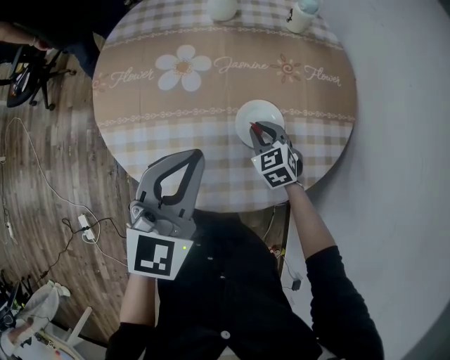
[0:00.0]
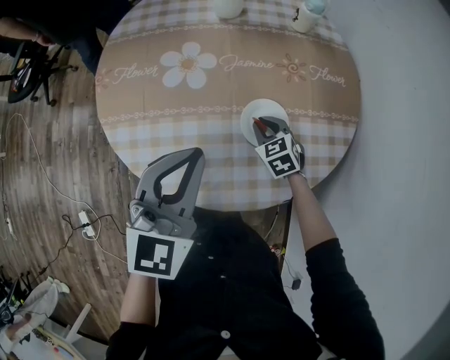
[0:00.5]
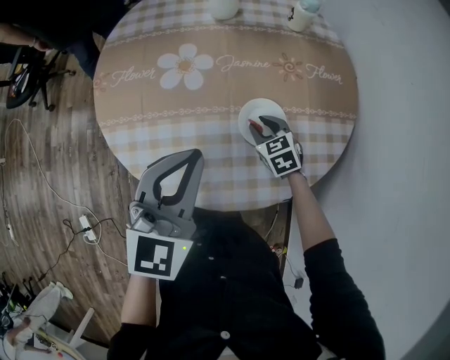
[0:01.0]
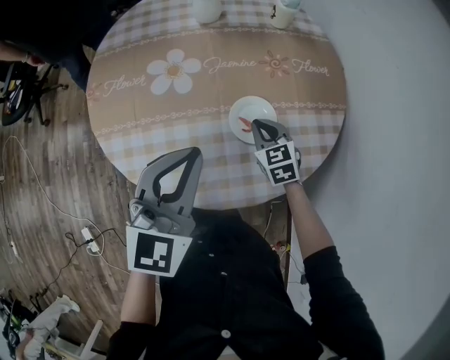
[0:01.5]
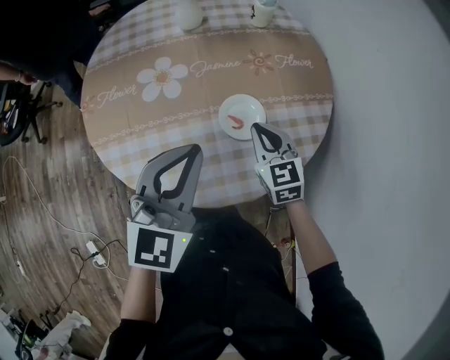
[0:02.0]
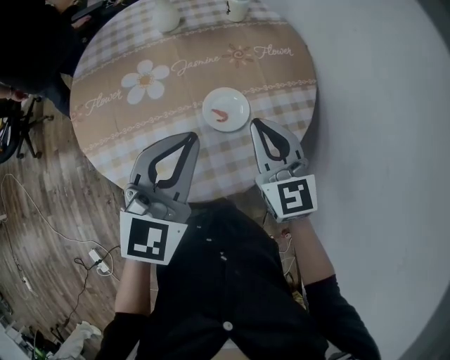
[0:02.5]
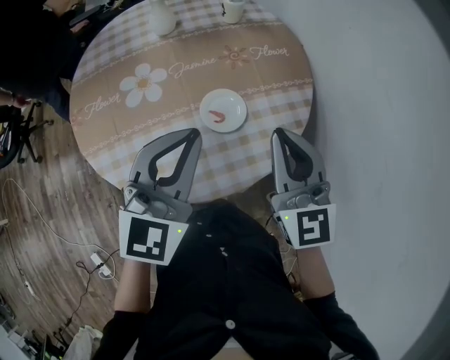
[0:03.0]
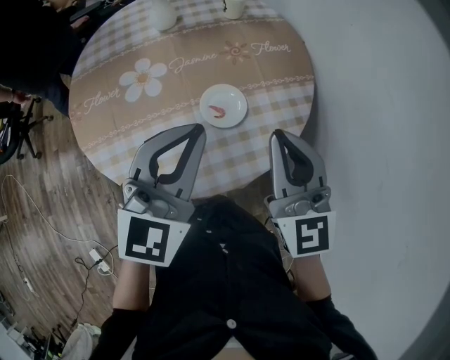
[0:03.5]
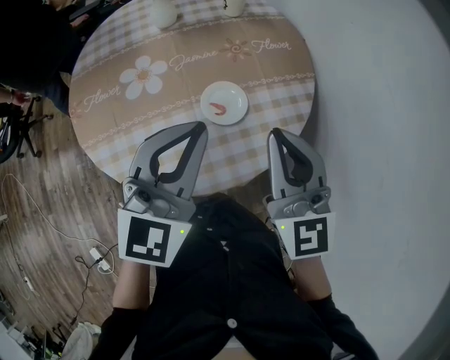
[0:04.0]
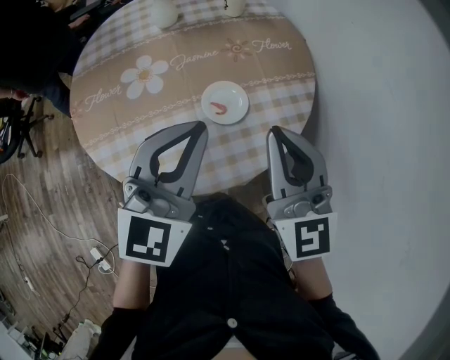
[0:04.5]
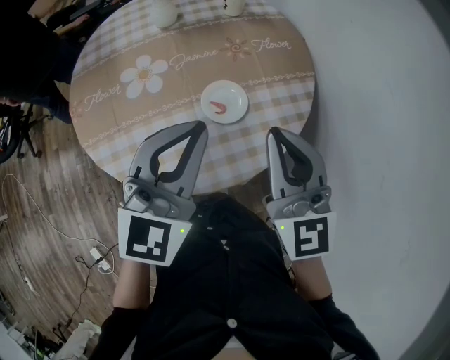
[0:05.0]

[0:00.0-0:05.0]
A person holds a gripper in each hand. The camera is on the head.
0:00.0 to 0:02.5: The left gripper is displaced to the right by about 5 cm. The right gripper shifts about 25 cm upward, and tilts its fingers some 30 degrees upward.
0:02.5 to 0:05.0: The right gripper travels upward and backward by approximately 10 cm.

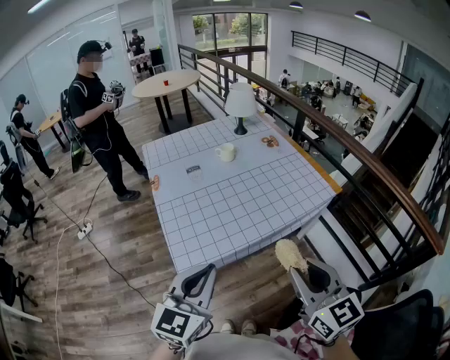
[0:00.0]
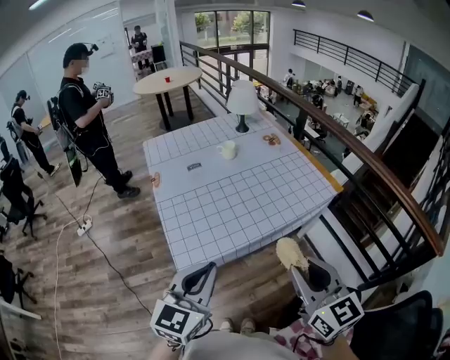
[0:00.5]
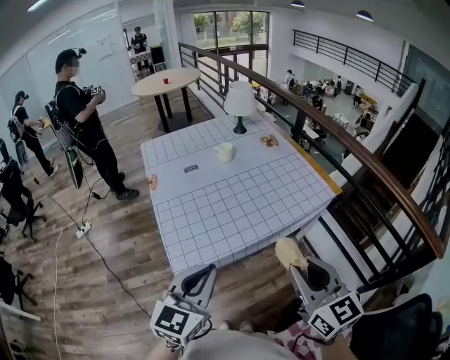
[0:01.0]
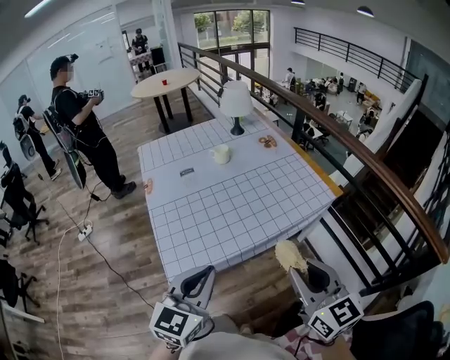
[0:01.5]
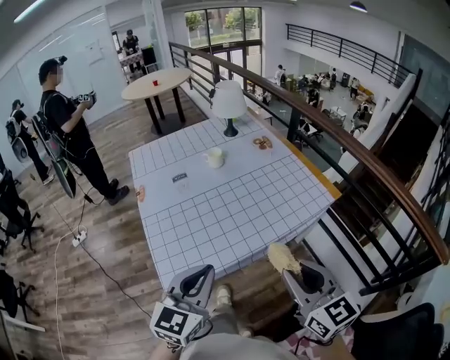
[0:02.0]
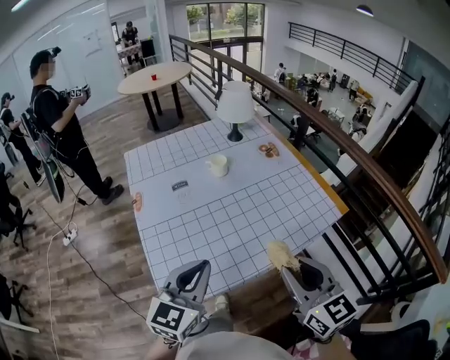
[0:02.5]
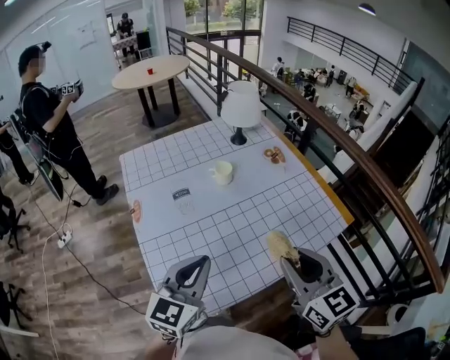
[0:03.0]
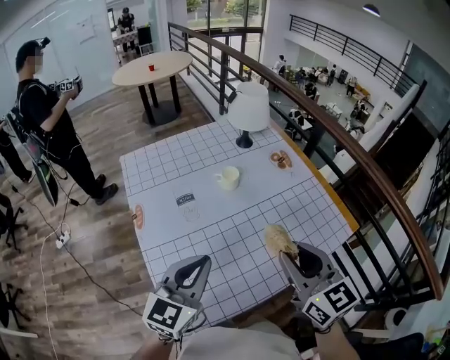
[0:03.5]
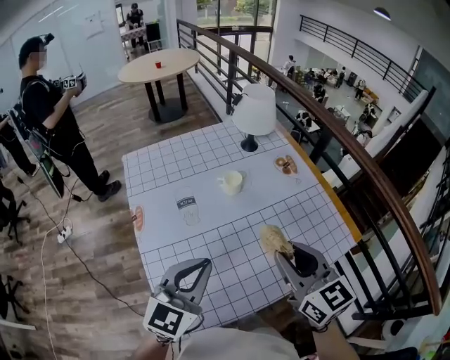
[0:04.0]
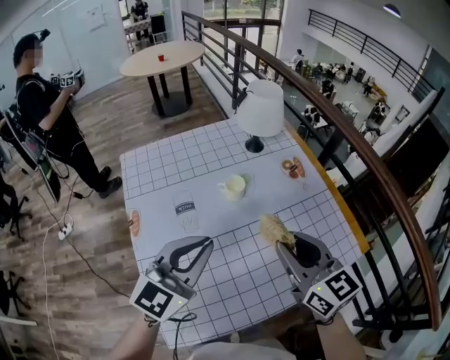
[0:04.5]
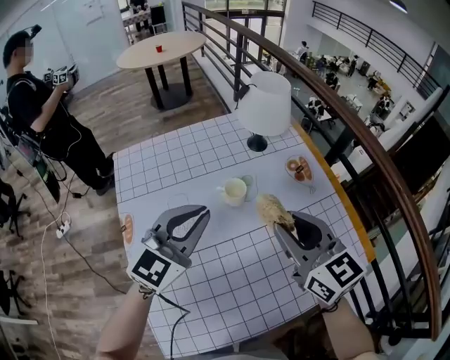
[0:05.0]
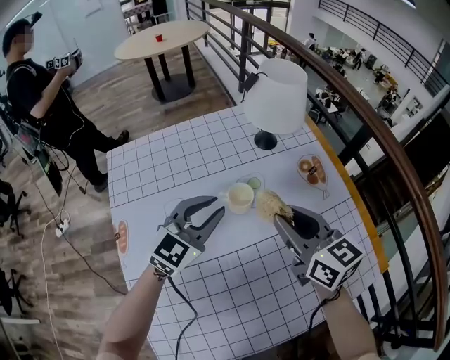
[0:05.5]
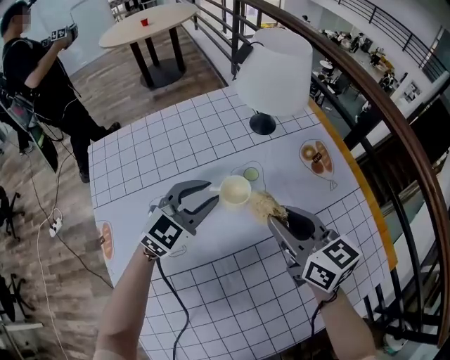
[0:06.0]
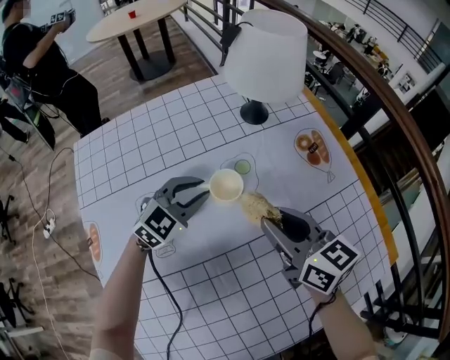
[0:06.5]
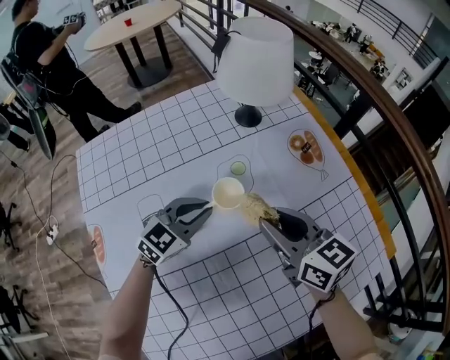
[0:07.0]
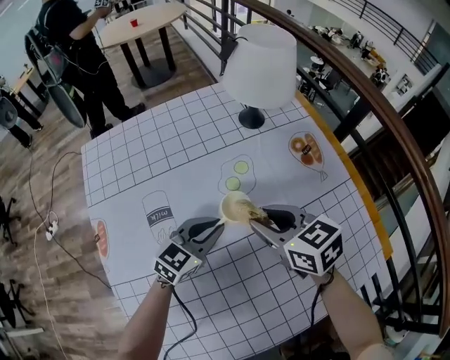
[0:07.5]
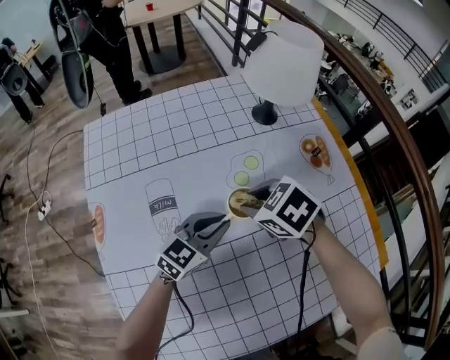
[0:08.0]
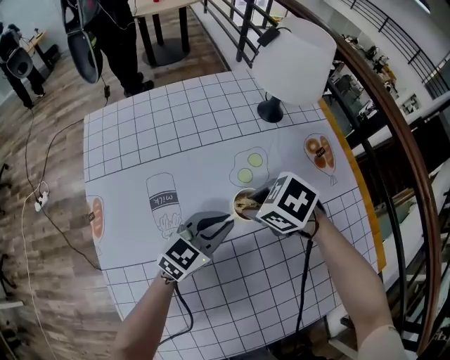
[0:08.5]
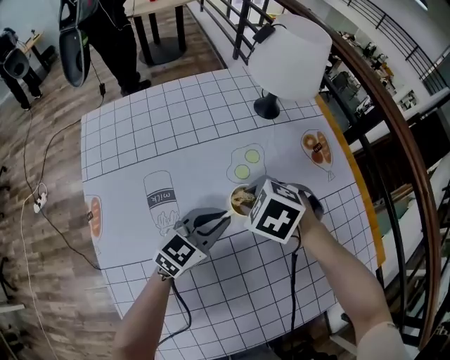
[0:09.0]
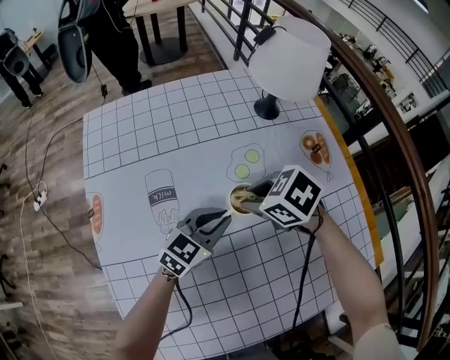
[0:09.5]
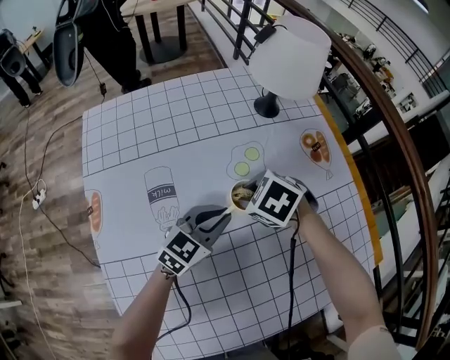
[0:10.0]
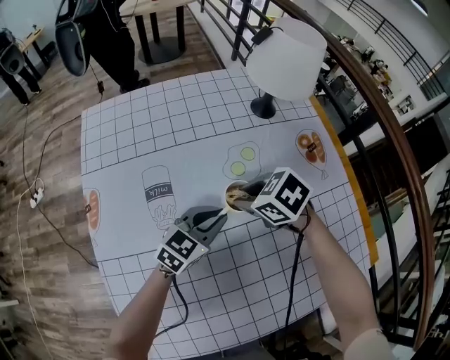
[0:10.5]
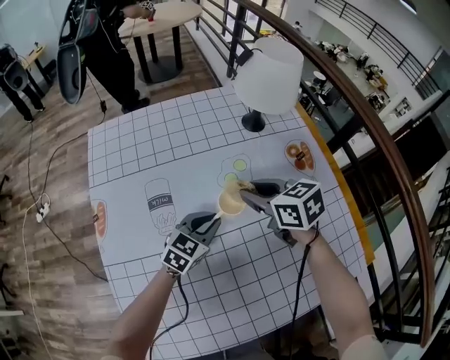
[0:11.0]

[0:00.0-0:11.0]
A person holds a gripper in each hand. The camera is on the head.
0:00.0 to 0:02.0: The left gripper shifts approximately 10 cm forward and to the right. The right gripper shifts about 10 cm forward.
0:02.0 to 0:03.5: The grippers both shift forward and to the left by about 30 cm.
0:03.5 to 0:05.5: The right gripper is displaced forward and downward by about 35 cm; the left gripper heads forward, covering roughly 35 cm.
0:05.5 to 0:07.5: Both grippers travel together downward, roughly 15 cm. The left gripper swivels some 20 degrees. The right gripper rotates about 20 degrees.
0:07.5 to 0:09.0: The right gripper heads downward, covering roughly 5 cm, and tilts its fingers approximately 40 degrees downward.
0:09.0 to 0:11.0: The right gripper heads upward, covering approximately 10 cm, and tilts its fingers roughly 30 degrees upward.

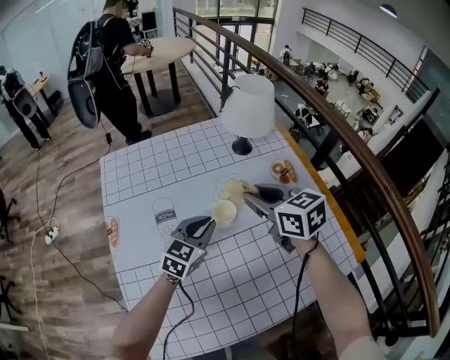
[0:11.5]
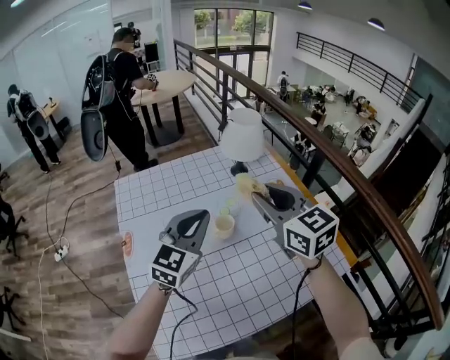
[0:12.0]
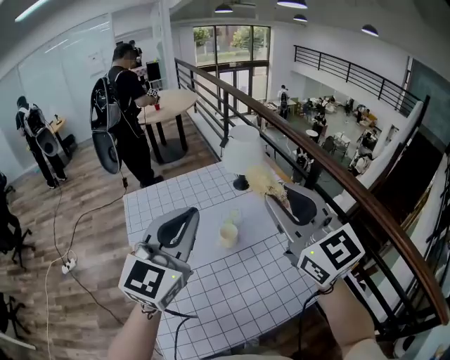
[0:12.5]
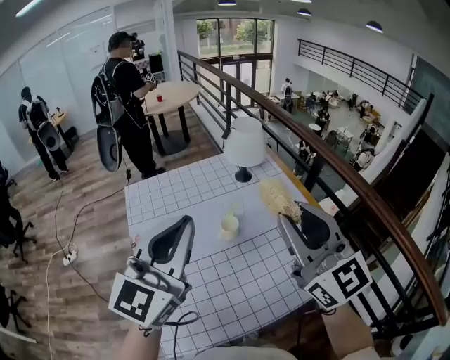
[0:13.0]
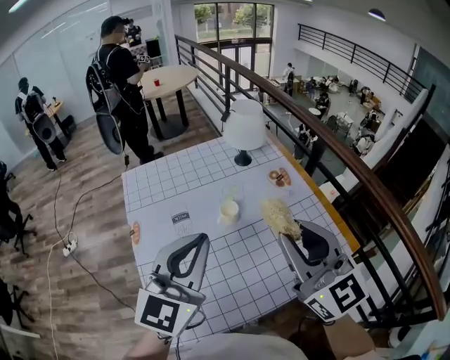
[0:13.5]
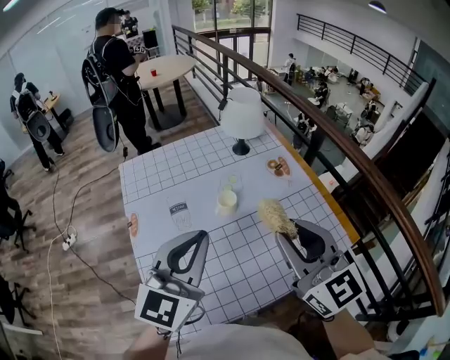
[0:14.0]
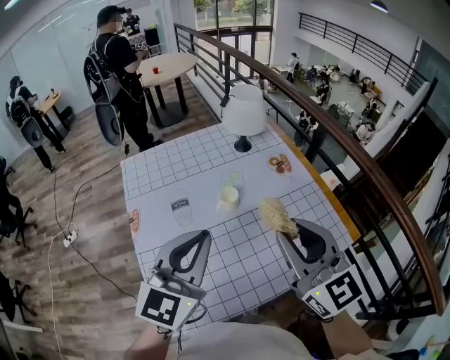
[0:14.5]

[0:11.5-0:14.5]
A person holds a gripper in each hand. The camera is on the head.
0:11.5 to 0:13.0: Both grippers move upward and backward, approximately 40 cm. The right gripper points its fingers about 40 degrees further upward. The left gripper tilts its fingers some 30 degrees upward.
0:13.0 to 0:14.5: The two grippers go about 10 cm downward.

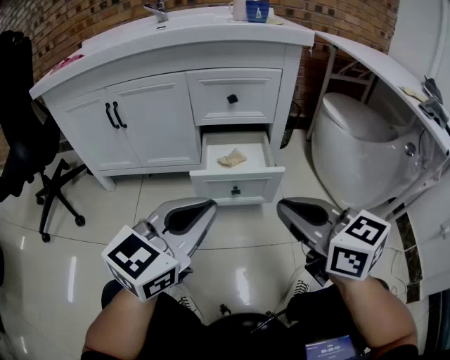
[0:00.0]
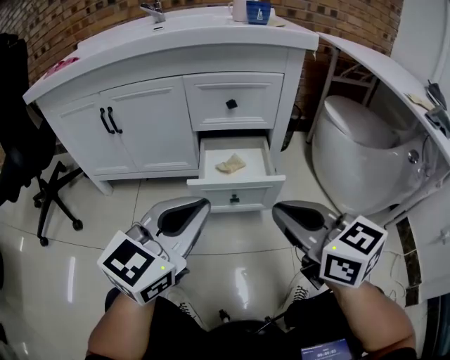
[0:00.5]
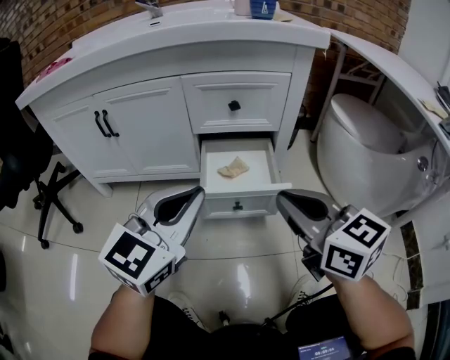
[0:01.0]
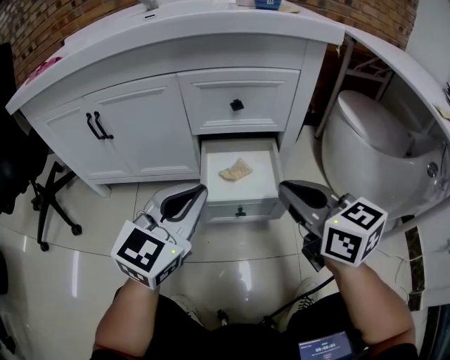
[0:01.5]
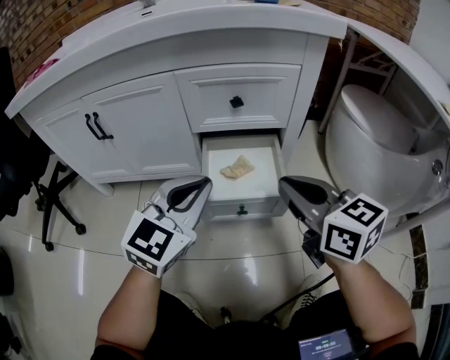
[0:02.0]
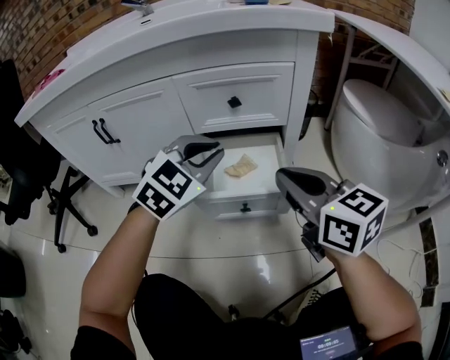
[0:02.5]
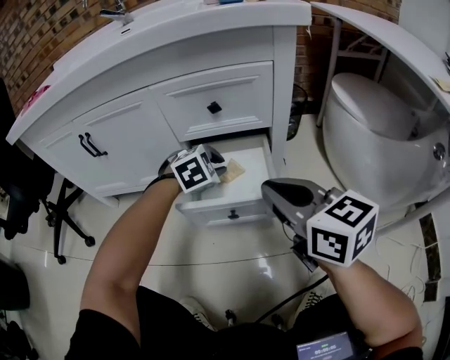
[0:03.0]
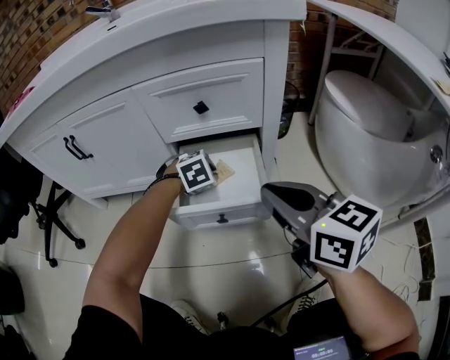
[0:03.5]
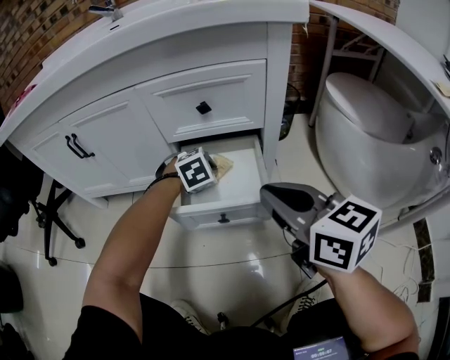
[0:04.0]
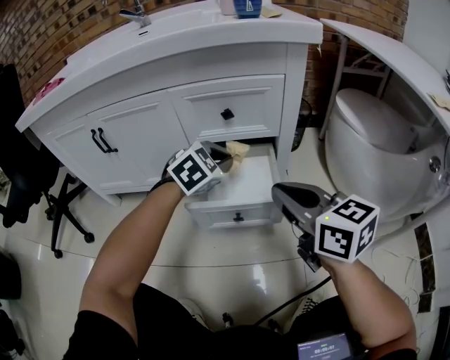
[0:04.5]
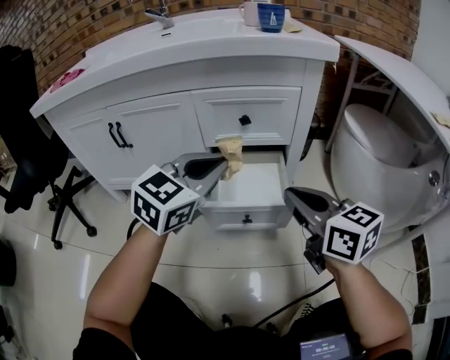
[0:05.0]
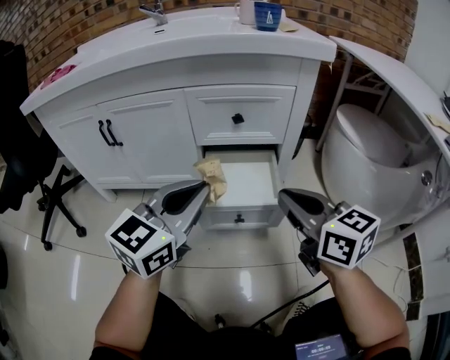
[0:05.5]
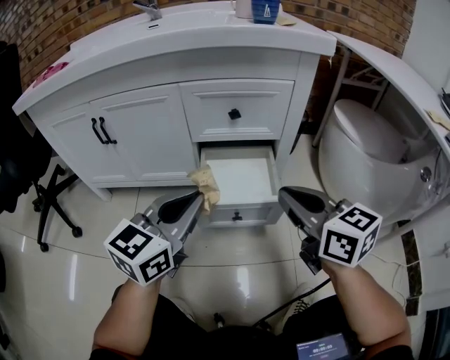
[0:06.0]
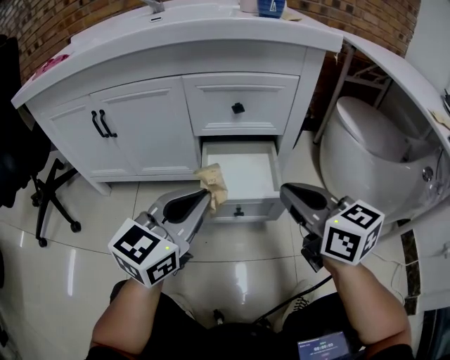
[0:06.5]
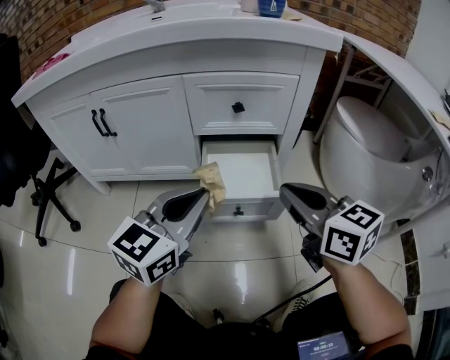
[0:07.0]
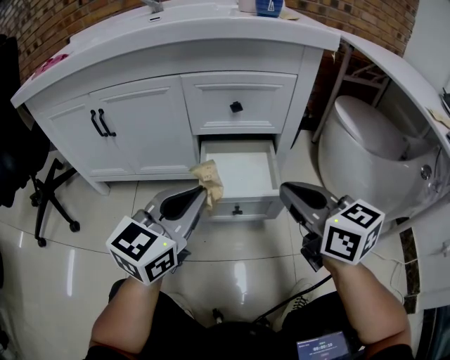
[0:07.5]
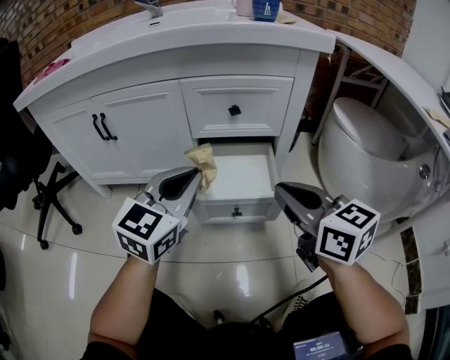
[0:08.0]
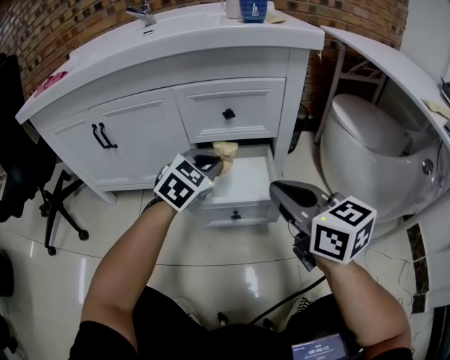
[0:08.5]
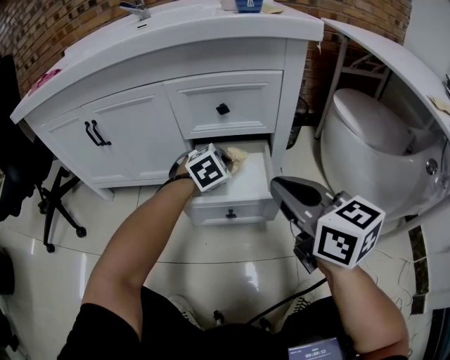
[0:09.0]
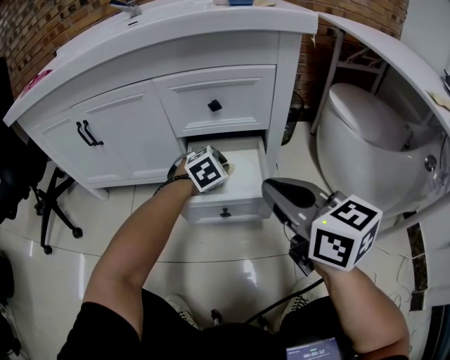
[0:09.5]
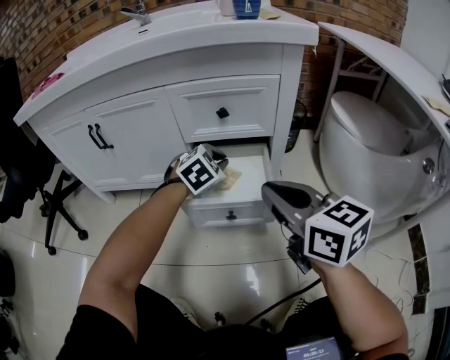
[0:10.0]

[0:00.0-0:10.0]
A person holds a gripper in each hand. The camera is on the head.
0:00.0 to 0:02.0: The two grippers go some 15 cm forward.
0:02.0 to 0:04.0: The left gripper shifts about 25 cm downward and forward, and tilts its fingers about 50 degrees downward.
0:04.0 to 0:06.0: The left gripper shifts about 30 cm upward and backward, and tilts its fingers roughly 50 degrees upward.
0:06.0 to 0:08.0: The grippers make only small movements.
0:08.0 to 0:10.0: The left gripper is displaced downward, forward and to the right by approximately 20 cm, and tilts its fingers roughly 40 degrees downward.
